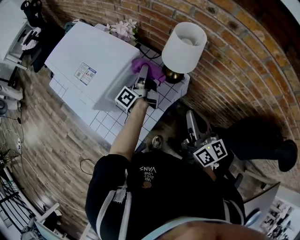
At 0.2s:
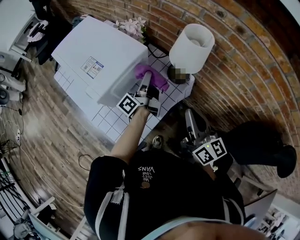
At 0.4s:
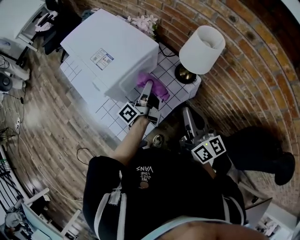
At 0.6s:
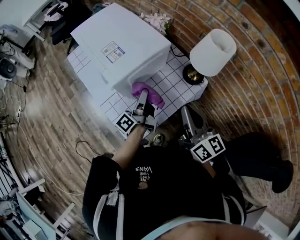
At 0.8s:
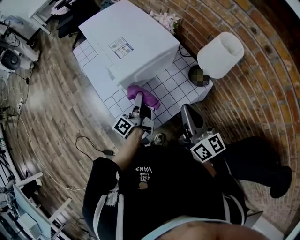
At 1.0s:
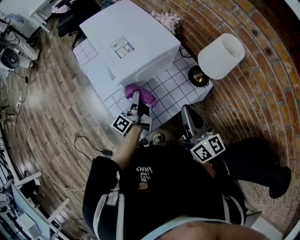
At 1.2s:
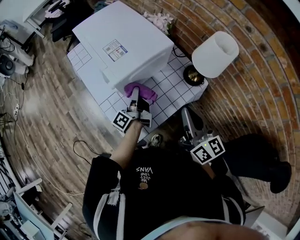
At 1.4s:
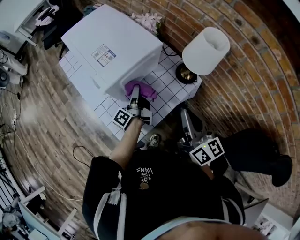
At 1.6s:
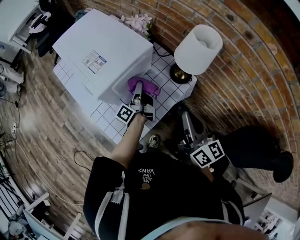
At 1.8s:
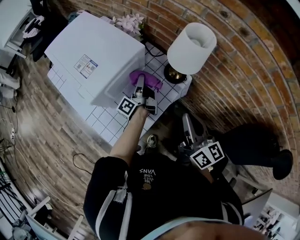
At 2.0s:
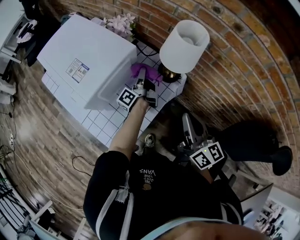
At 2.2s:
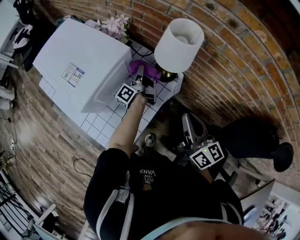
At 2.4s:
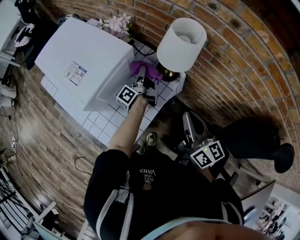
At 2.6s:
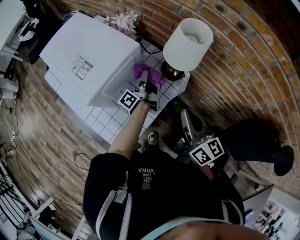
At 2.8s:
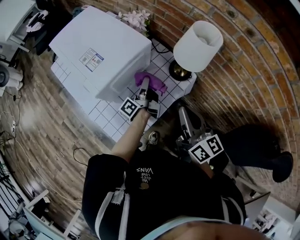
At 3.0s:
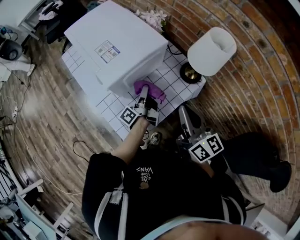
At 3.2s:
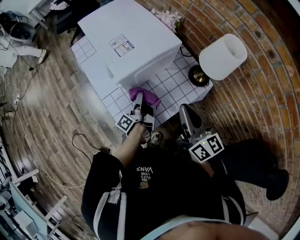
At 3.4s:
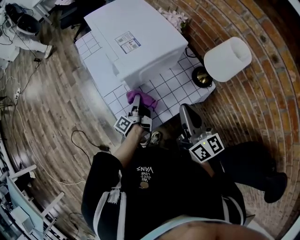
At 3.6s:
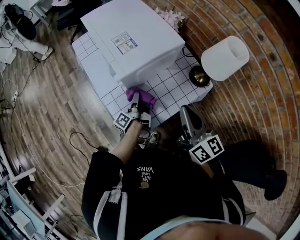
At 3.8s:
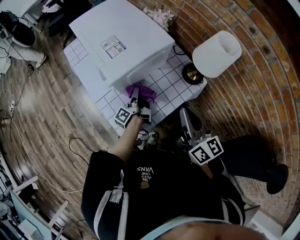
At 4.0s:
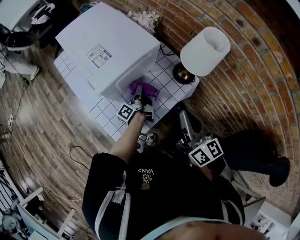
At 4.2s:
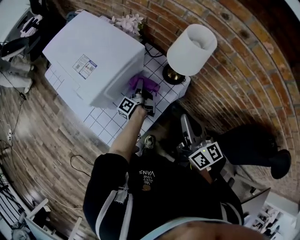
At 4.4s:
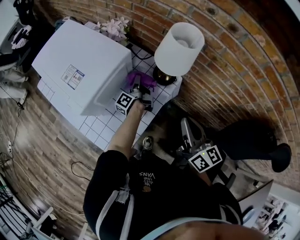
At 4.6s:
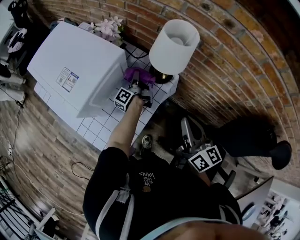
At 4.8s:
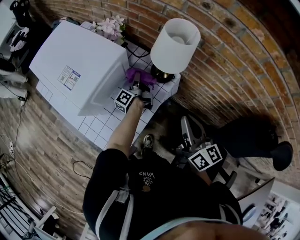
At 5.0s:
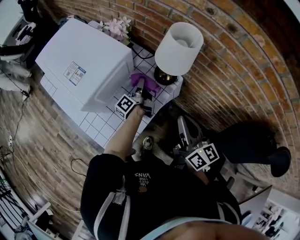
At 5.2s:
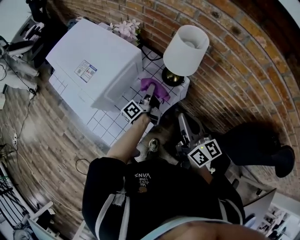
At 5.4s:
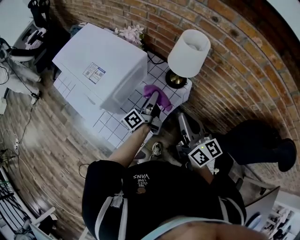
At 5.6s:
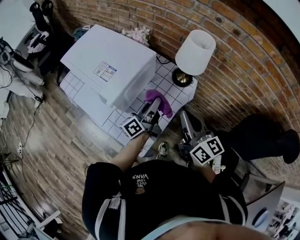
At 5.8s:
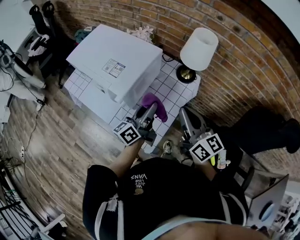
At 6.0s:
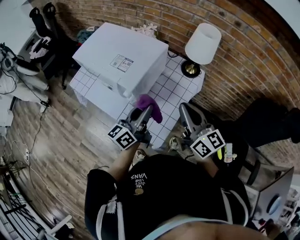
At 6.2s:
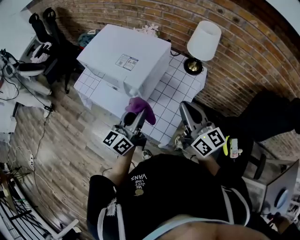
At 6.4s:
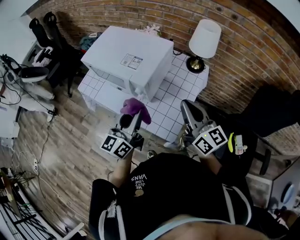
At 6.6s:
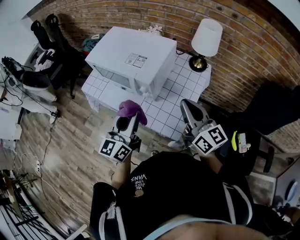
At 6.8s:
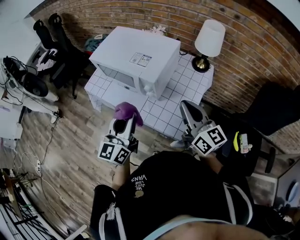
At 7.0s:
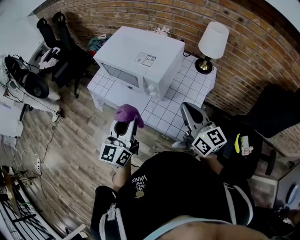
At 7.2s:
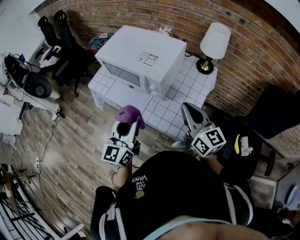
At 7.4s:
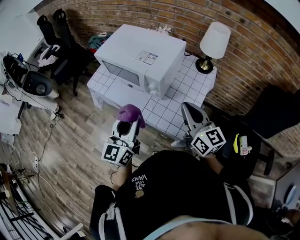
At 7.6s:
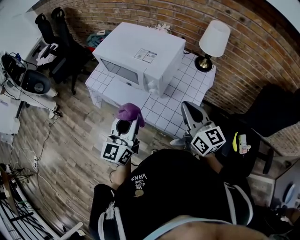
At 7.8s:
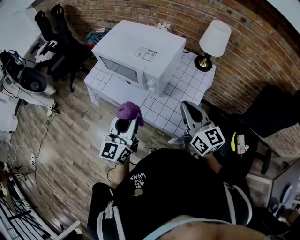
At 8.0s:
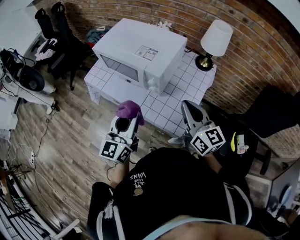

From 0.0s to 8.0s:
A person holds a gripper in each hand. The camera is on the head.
From 0.0s to 1.6s: The left gripper shifts about 15 cm to the left, downward and backward.
From 1.6s to 3.2s: The right gripper heads to the left, covering some 10 cm, while the left gripper goes approximately 10 cm to the left and backward.
From 3.2s to 4.8s: The left gripper shifts about 25 cm to the right and forward. Meanwhile the right gripper shifts approximately 15 cm to the right, and rotates approximately 20 degrees.
From 4.8s to 6.4s: The left gripper goes approximately 50 cm backward, to the left and upward, and rotates around the line of its fingers by approximately 60 degrees, clockwise from behind. The right gripper heads to the left and backward, covering some 25 cm.
From 6.4s to 8.0s: The two grippers go about 5 cm to the left.

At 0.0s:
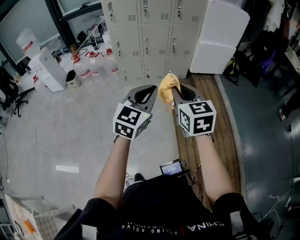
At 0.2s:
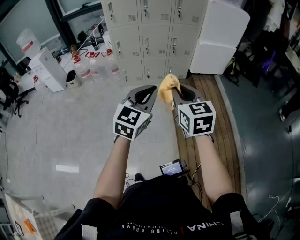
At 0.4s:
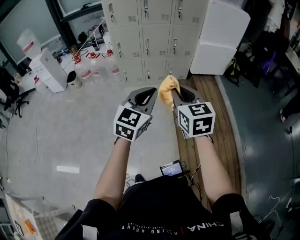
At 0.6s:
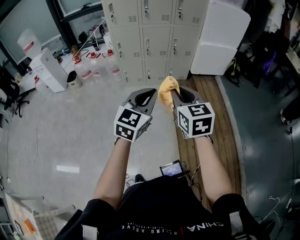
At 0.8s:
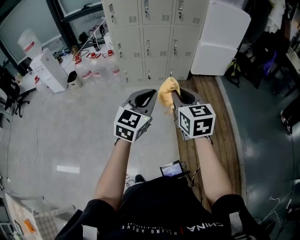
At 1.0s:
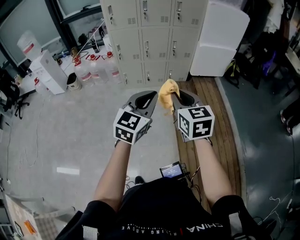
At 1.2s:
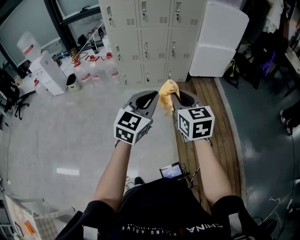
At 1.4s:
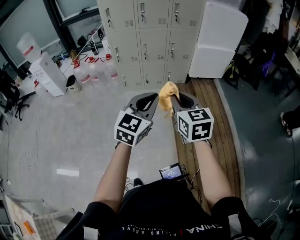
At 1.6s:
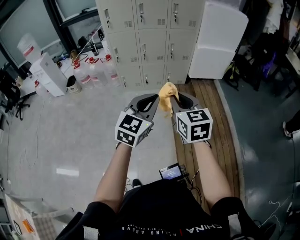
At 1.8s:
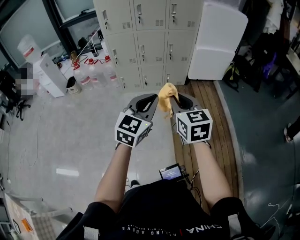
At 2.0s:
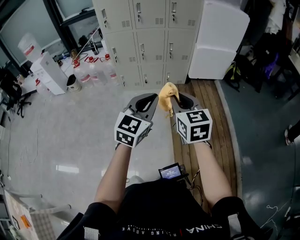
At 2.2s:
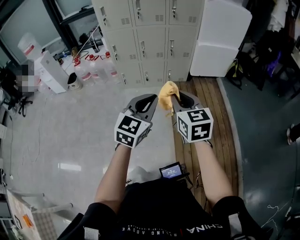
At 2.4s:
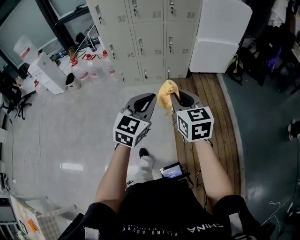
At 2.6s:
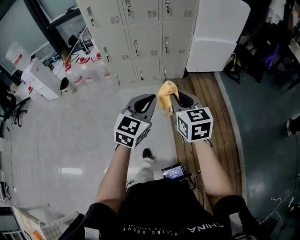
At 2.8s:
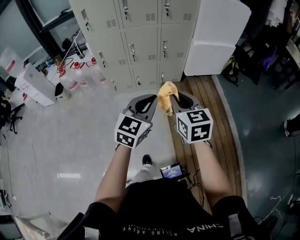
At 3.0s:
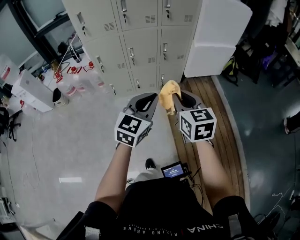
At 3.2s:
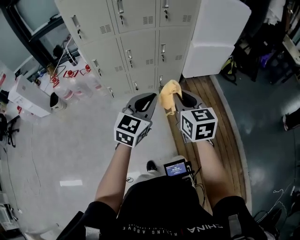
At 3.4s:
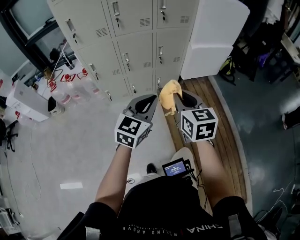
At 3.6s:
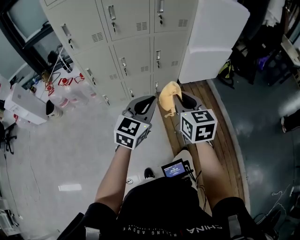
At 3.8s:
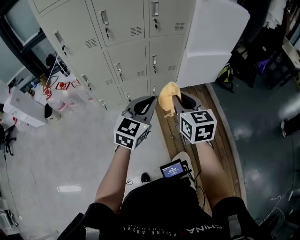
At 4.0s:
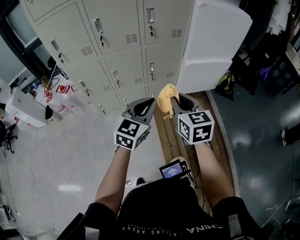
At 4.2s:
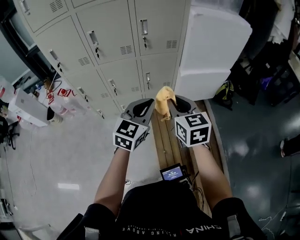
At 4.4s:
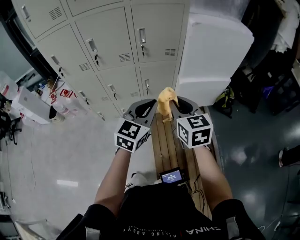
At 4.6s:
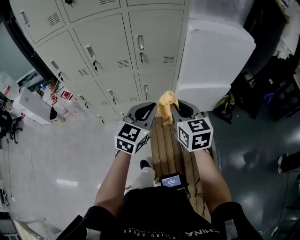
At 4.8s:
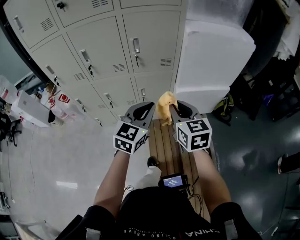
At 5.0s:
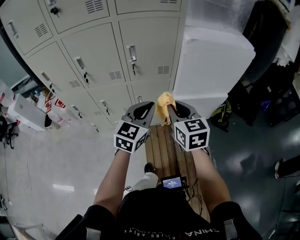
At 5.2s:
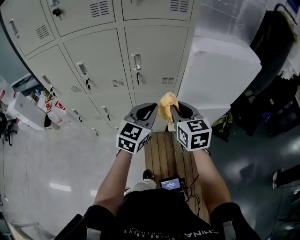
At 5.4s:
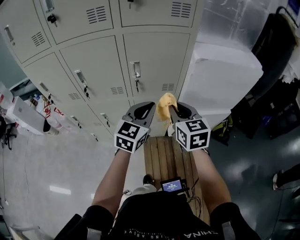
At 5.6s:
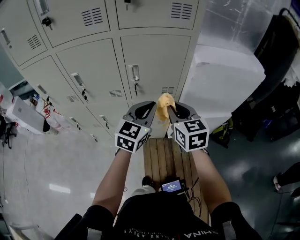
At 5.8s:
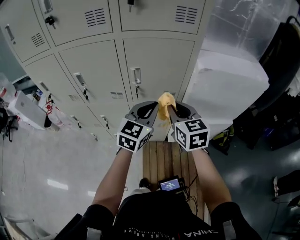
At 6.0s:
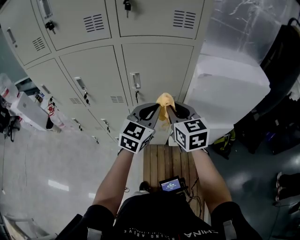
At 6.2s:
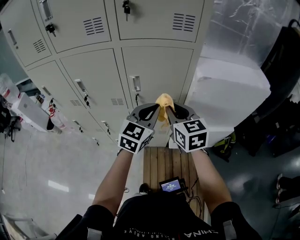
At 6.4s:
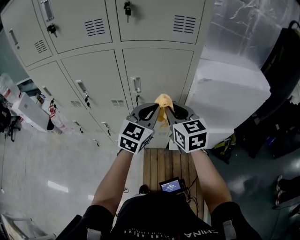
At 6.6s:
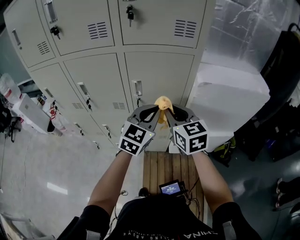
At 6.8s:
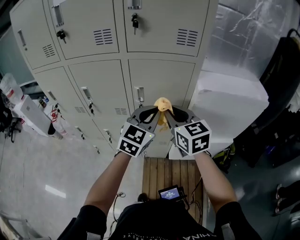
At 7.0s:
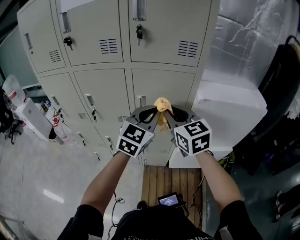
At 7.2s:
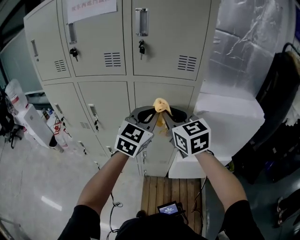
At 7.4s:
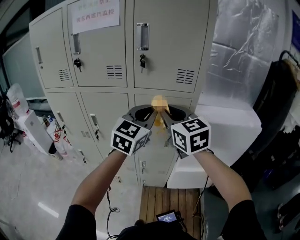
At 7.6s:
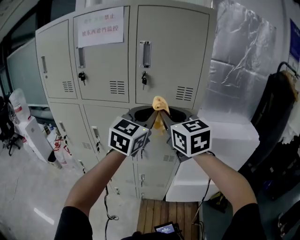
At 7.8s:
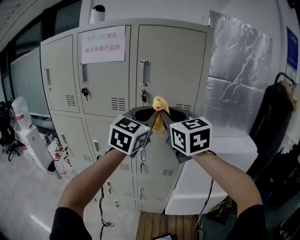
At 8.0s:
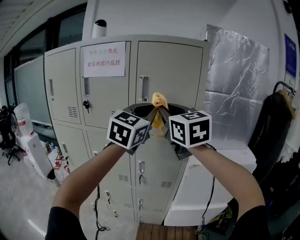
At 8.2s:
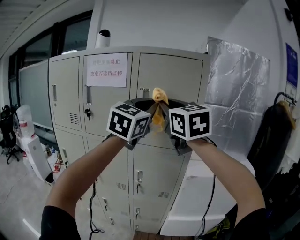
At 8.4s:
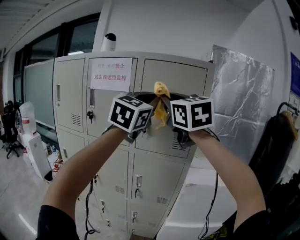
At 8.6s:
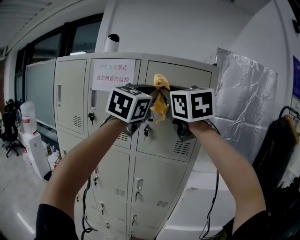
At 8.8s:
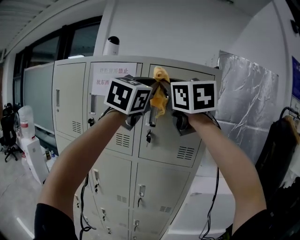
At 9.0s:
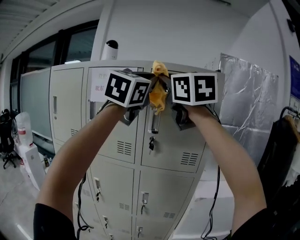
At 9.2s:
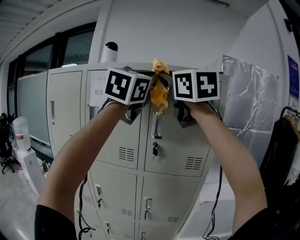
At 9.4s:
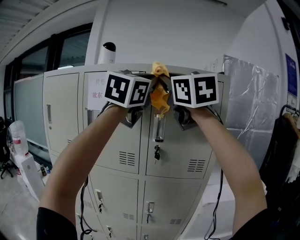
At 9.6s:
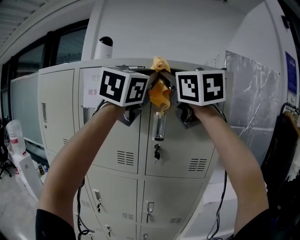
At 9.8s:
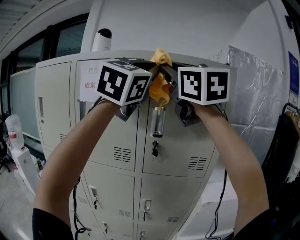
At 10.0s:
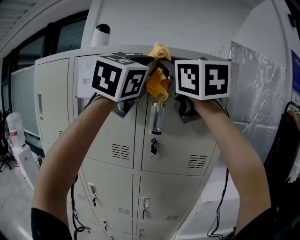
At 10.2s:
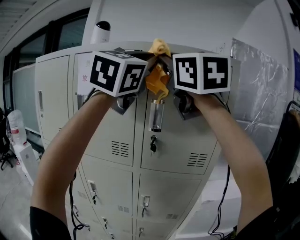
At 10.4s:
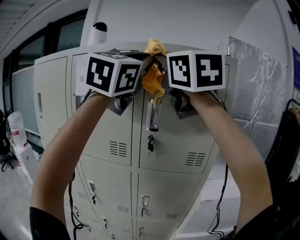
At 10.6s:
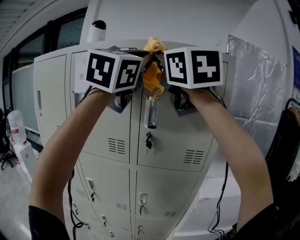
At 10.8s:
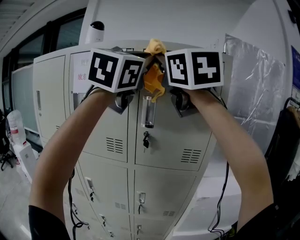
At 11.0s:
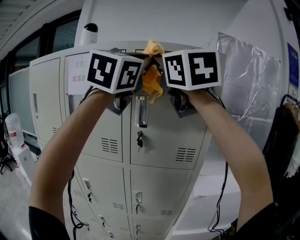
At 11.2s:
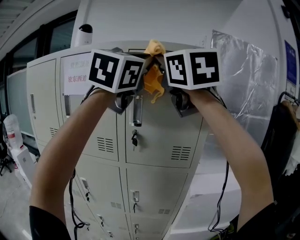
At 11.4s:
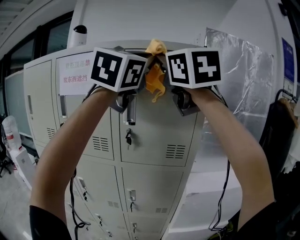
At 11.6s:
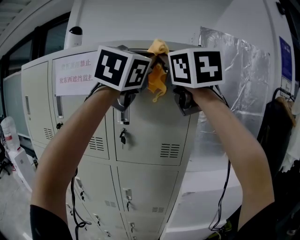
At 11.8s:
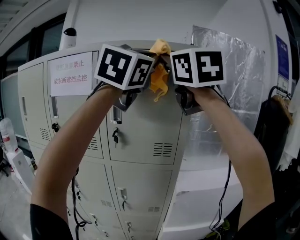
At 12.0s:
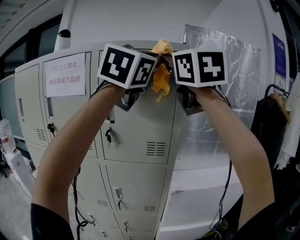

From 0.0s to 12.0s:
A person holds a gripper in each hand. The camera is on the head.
From 0.0s to 1.6s: The right gripper shifts by some 5 cm; the left gripper travels to the right by approximately 5 cm.
From 1.6s to 3.0s: The grippers both shift forward by roughly 25 cm.
From 3.0s to 4.4s: Both grippers travel together forward and to the right, roughly 40 cm.
From 4.4s to 6.0s: Both grippers travel together forward, some 30 cm.
From 6.0s to 7.6s: Both grippers travel together upward, roughly 25 cm.
From 7.6s to 9.0s: The two grippers go about 35 cm upward. The left gripper changes its angle by roughly 20 degrees.
From 9.0s to 10.4s: The right gripper is displaced forward by approximately 5 cm, while the left gripper shifts by approximately 5 cm.
From 10.4s to 12.0s: The grippers both shift to the right by roughly 20 cm.

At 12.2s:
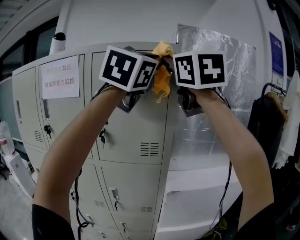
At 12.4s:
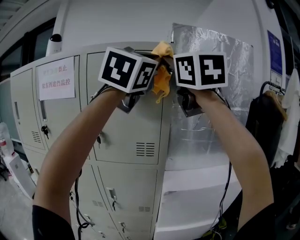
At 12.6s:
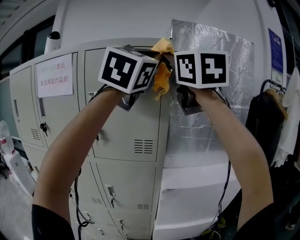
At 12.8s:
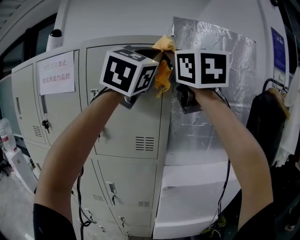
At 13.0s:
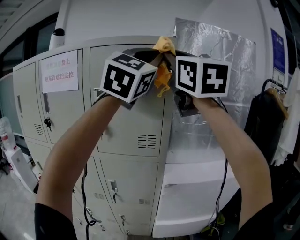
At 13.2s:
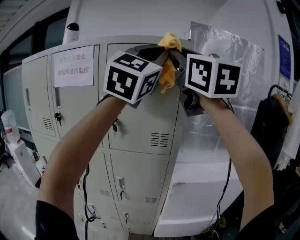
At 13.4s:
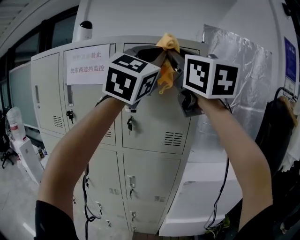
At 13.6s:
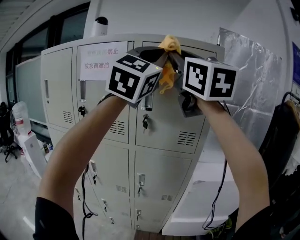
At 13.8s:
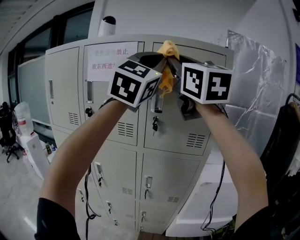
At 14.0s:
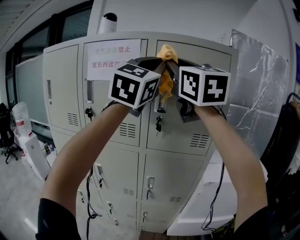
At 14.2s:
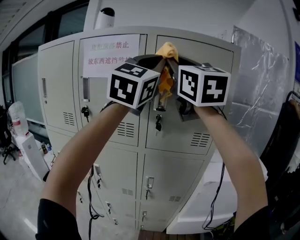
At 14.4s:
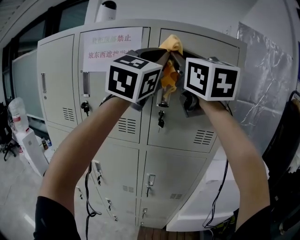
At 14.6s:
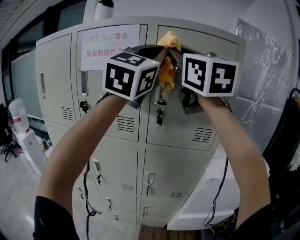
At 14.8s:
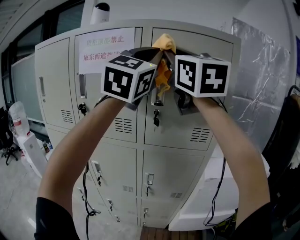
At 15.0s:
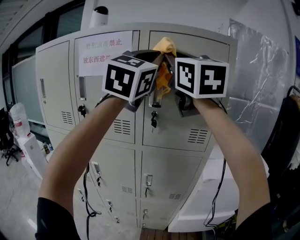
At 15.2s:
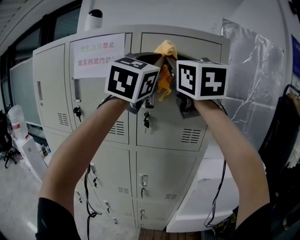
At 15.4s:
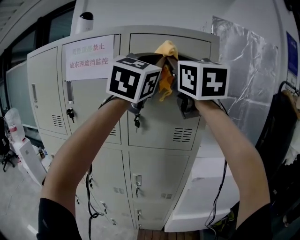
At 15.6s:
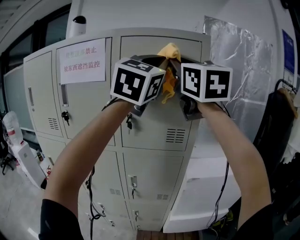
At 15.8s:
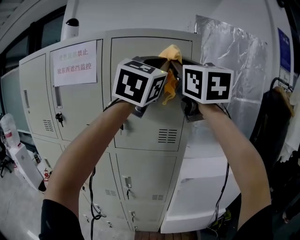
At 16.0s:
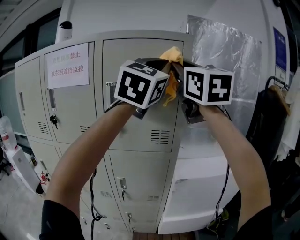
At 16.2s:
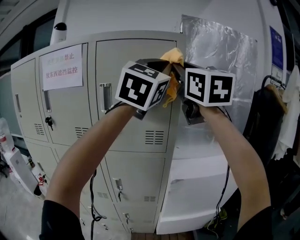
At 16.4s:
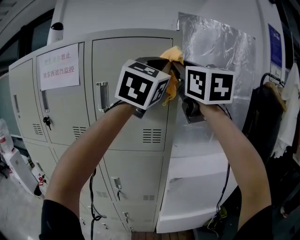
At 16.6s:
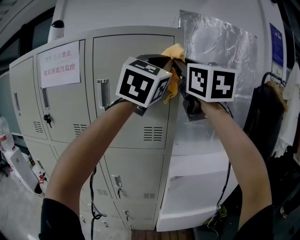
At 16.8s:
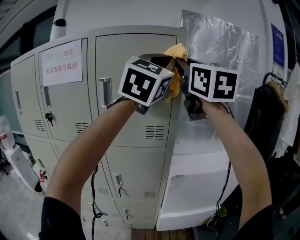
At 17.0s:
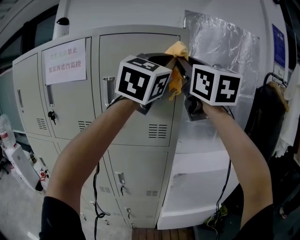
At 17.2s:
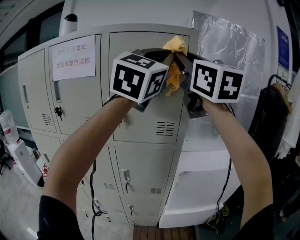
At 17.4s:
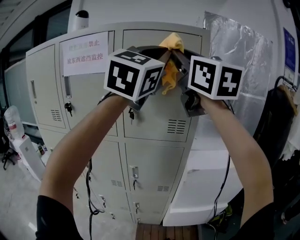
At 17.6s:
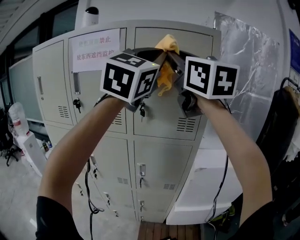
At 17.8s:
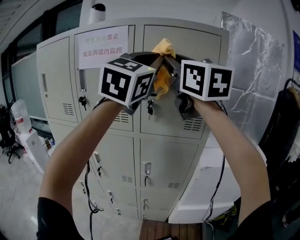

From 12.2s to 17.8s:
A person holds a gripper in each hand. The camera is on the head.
From 12.2s to 13.6s: The left gripper is displaced to the left by about 15 cm, while the right gripper shifts approximately 15 cm to the left and backward.
From 13.6s to 15.0s: Both grippers travel together forward, approximately 5 cm.
From 15.0s to 16.4s: Both grippers move to the right, approximately 20 cm.
From 16.4s to 17.8s: Both grippers travel together to the left, some 20 cm.
